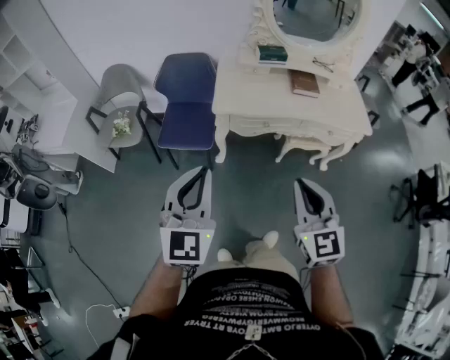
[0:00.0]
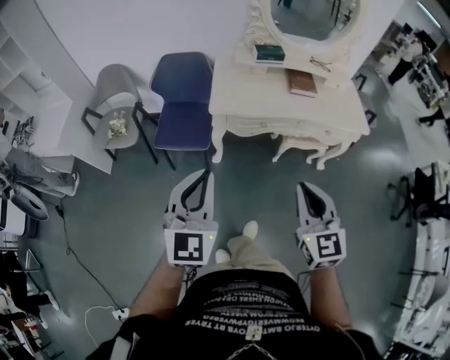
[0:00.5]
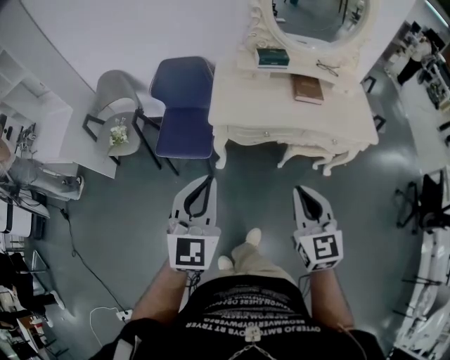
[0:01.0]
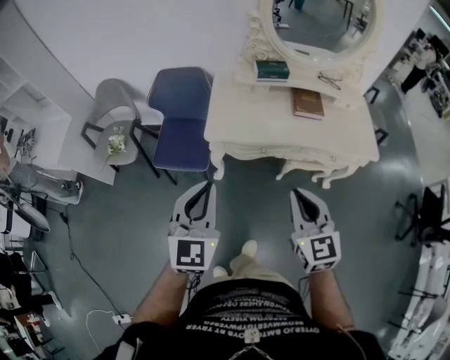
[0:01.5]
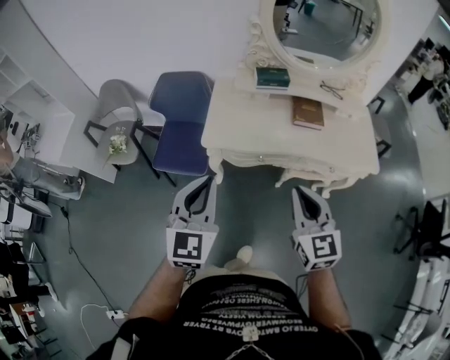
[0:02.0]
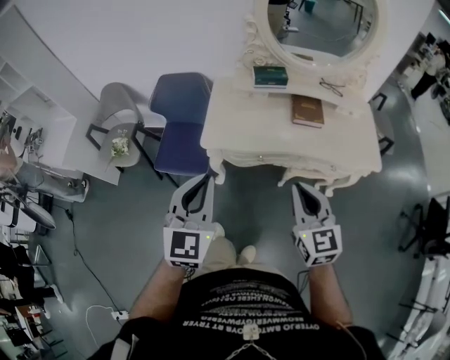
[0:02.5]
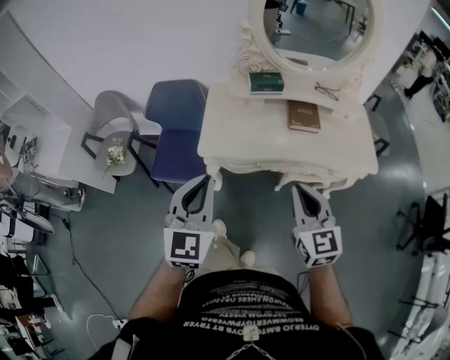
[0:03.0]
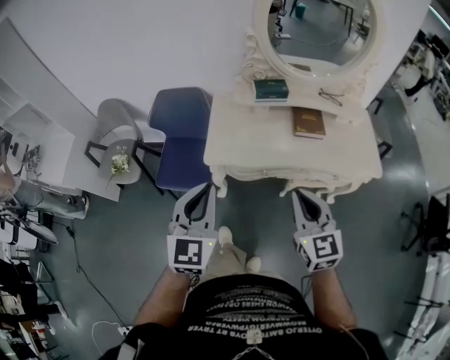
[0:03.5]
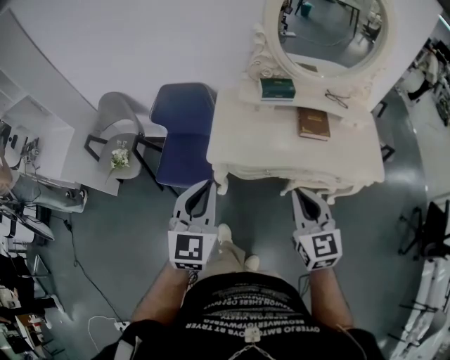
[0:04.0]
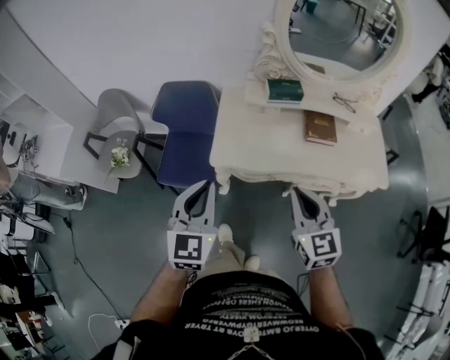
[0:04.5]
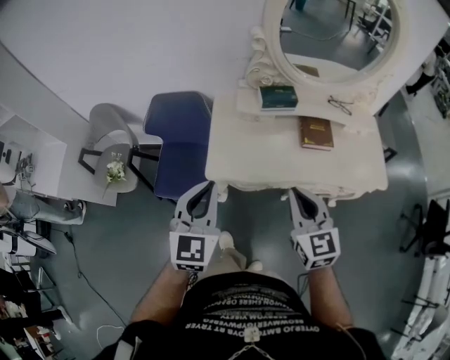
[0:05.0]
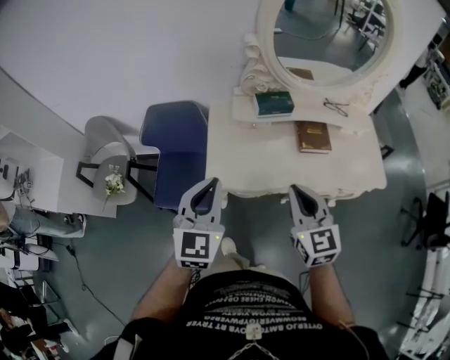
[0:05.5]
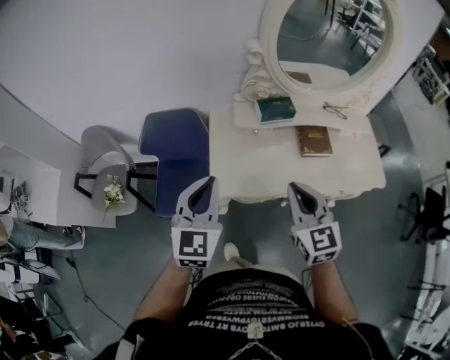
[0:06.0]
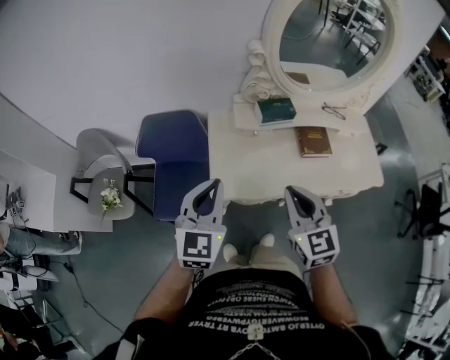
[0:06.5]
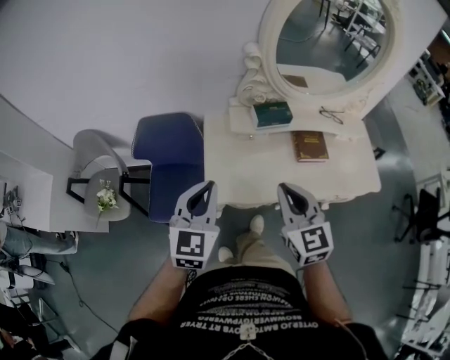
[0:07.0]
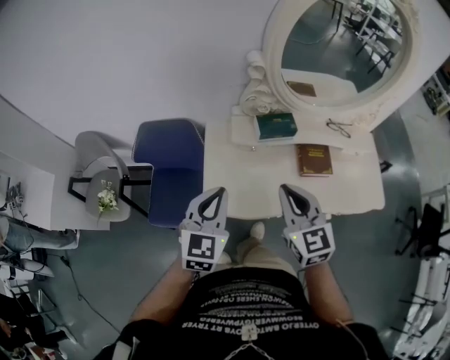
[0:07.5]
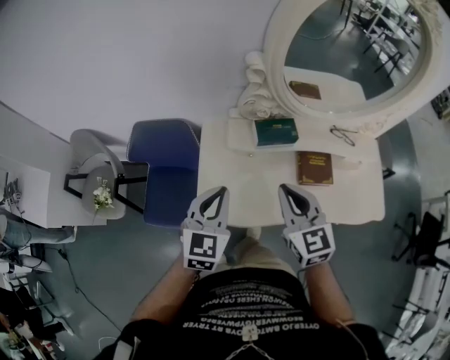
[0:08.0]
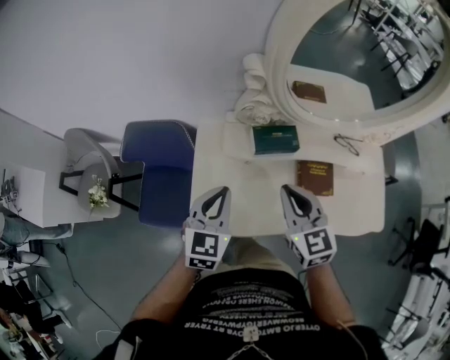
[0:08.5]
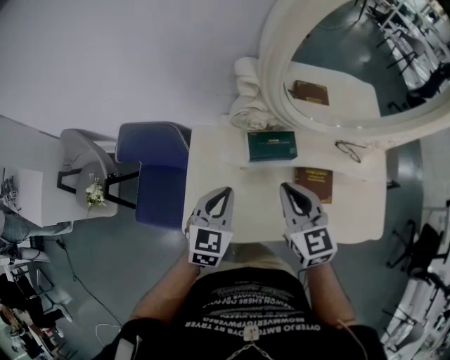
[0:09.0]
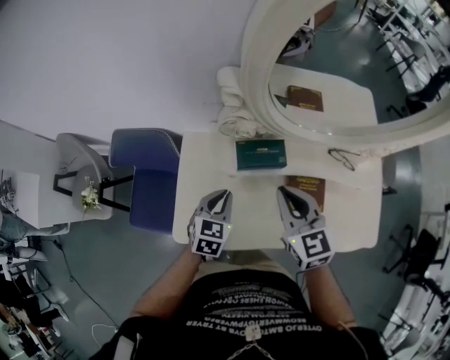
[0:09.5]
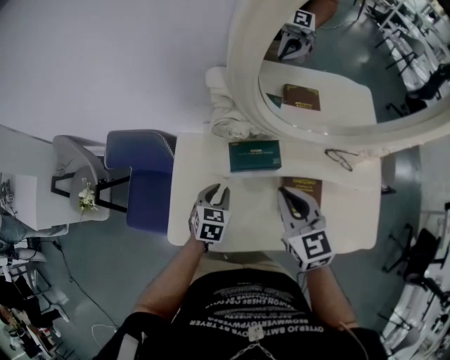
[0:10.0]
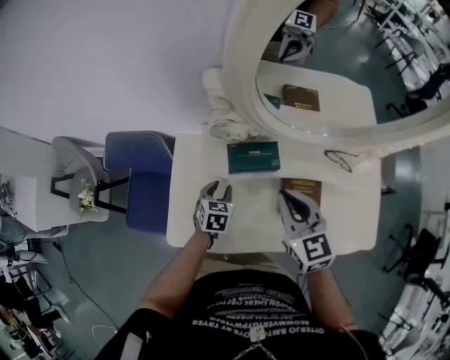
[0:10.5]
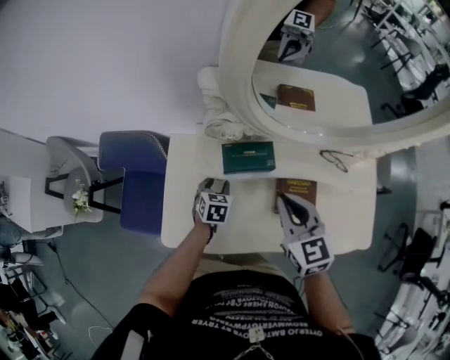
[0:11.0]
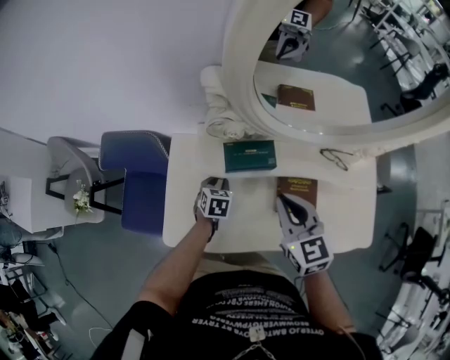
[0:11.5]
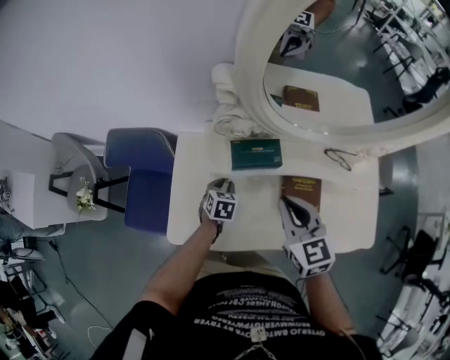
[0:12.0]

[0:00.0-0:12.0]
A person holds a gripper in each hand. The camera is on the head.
0:00.0 to 0:02.0: The grippers both shift forward and to the right by roughly 20 cm.
0:02.0 to 0:04.0: Both grippers move forward, about 5 cm.
0:04.0 to 0:06.0: The two grippers go about 15 cm forward.
0:06.0 to 0:08.0: The right gripper moves forward, roughly 15 cm; the left gripper goes about 15 cm forward, to the right and downward.
0:08.0 to 0:10.0: The right gripper heads forward and to the right, covering some 15 cm. Meanwhile the left gripper shifts roughly 25 cm downward, forward and to the right, and changes its angle by some 30 degrees.
0:10.0 to 0:12.0: The left gripper is displaced downward by roughly 10 cm.

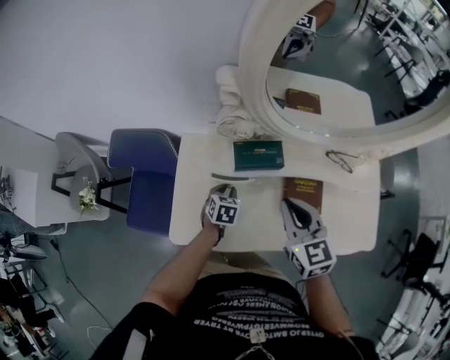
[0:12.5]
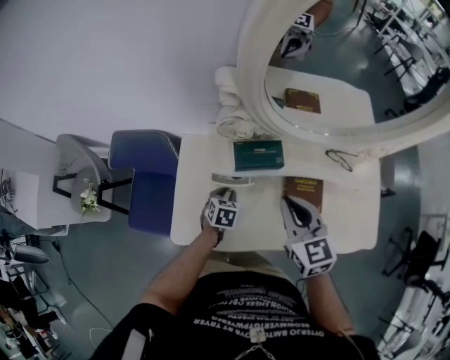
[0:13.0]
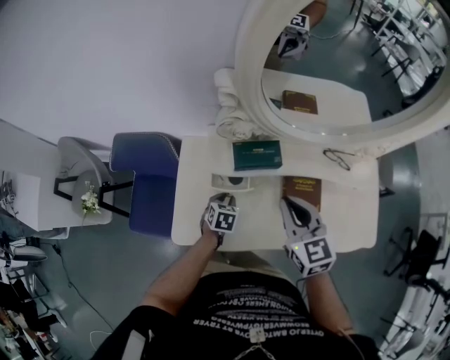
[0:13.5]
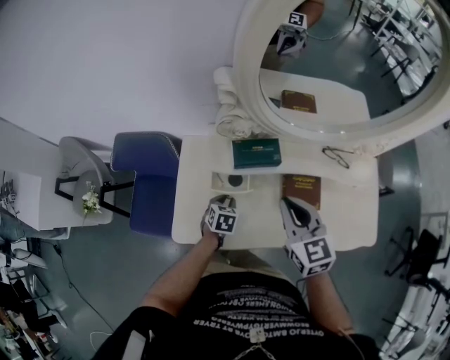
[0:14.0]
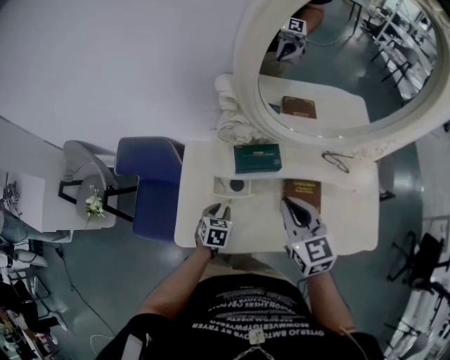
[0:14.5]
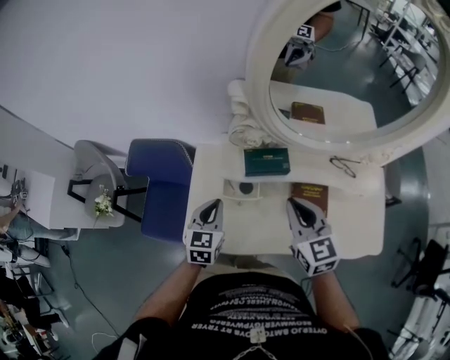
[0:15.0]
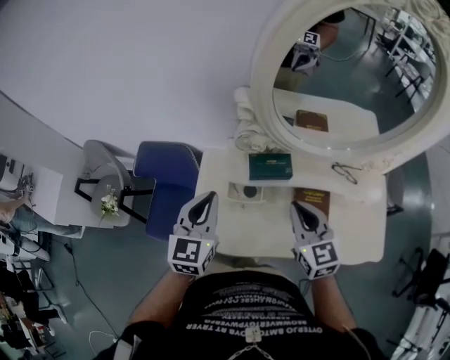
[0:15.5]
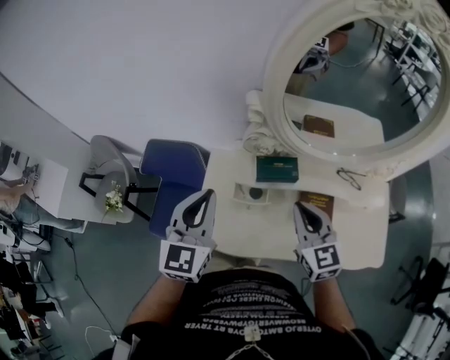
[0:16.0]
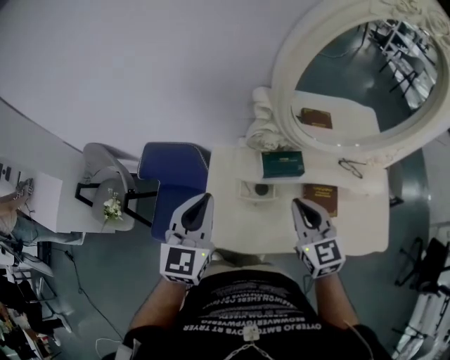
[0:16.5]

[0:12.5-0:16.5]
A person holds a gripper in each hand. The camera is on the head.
0:12.5 to 0:14.5: The left gripper moves backward, approximately 5 cm.
0:14.5 to 0:16.5: The left gripper shifts roughly 35 cm upward, tilts its fingers some 40 degrees upward, and closes. Meanwhile the right gripper moves to the left, about 5 cm.

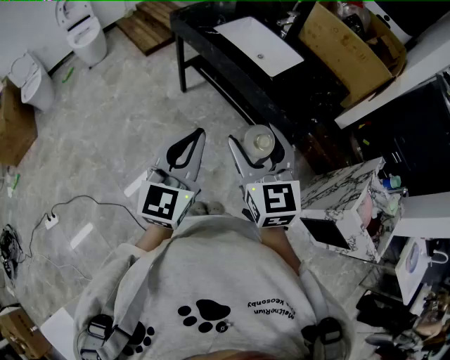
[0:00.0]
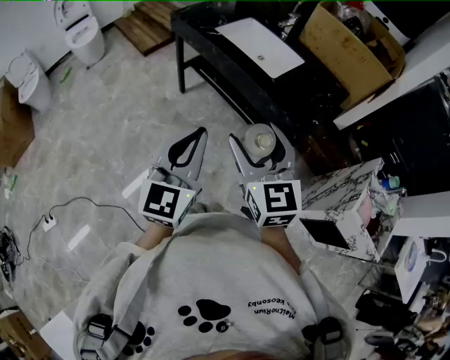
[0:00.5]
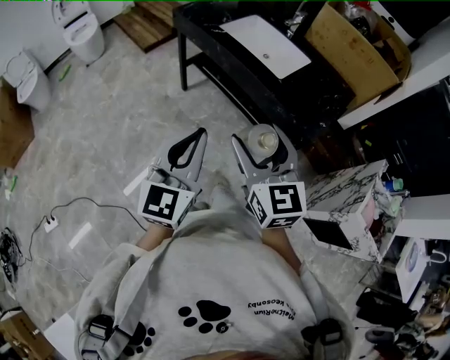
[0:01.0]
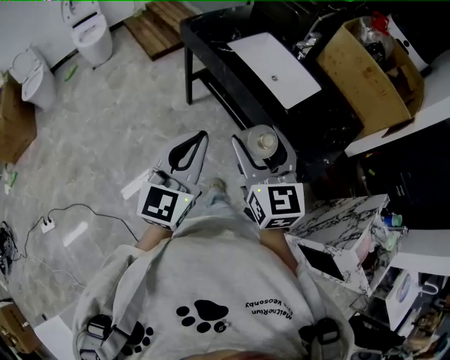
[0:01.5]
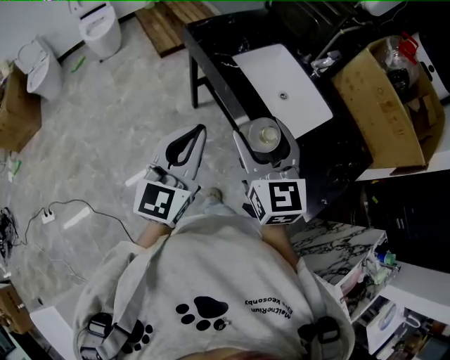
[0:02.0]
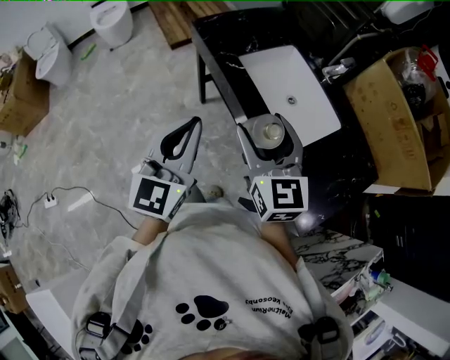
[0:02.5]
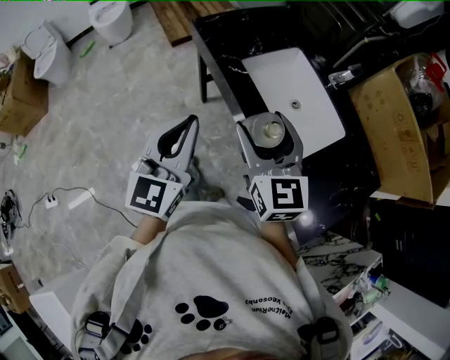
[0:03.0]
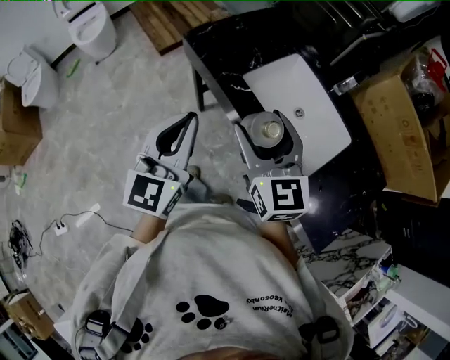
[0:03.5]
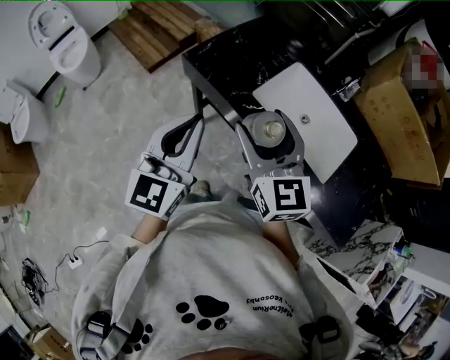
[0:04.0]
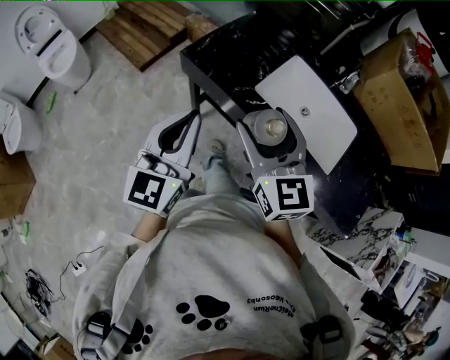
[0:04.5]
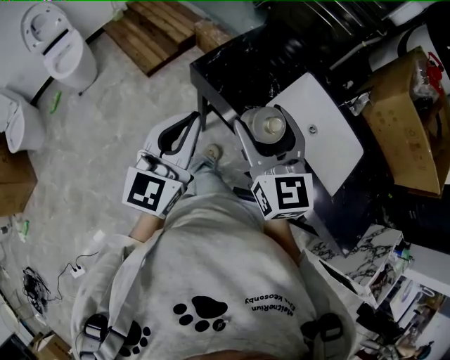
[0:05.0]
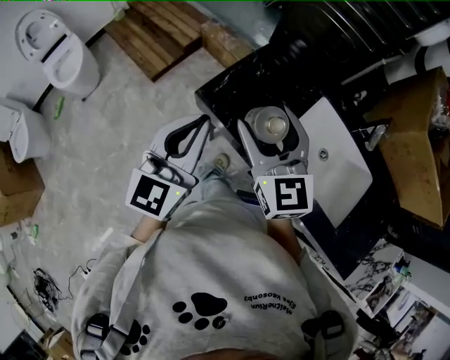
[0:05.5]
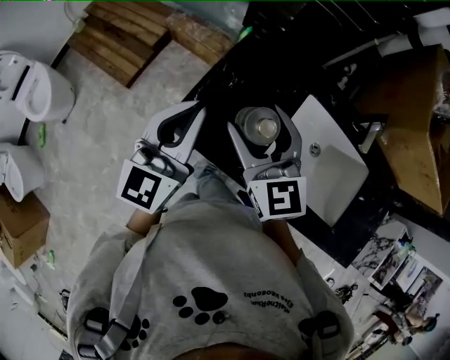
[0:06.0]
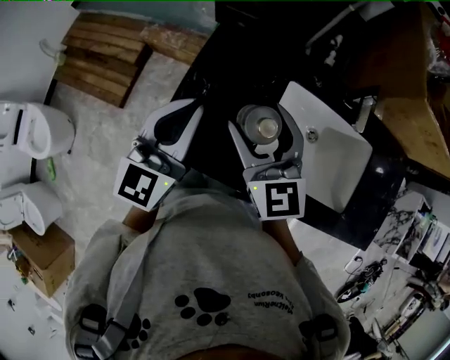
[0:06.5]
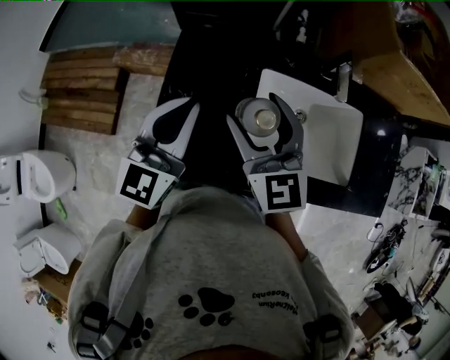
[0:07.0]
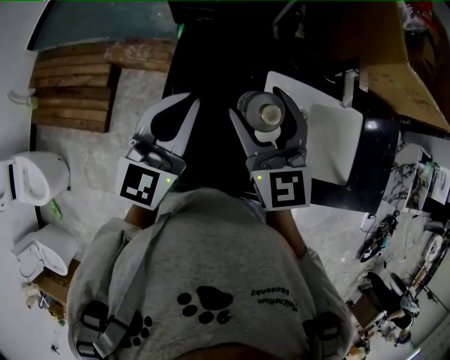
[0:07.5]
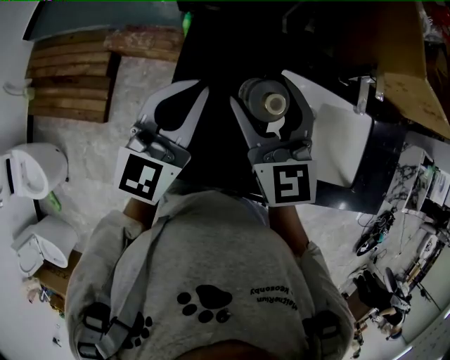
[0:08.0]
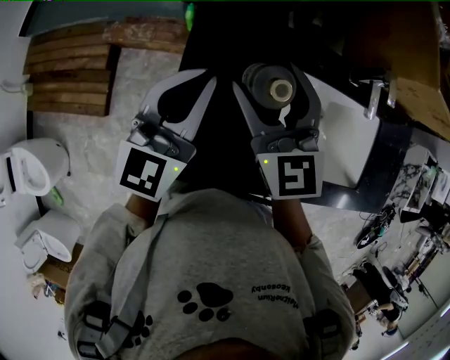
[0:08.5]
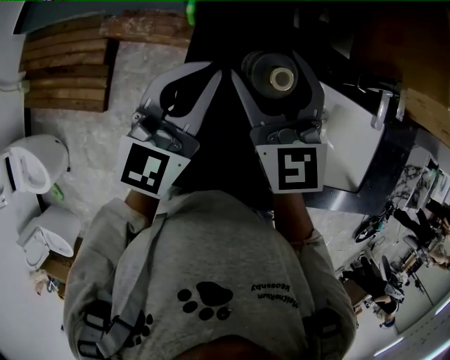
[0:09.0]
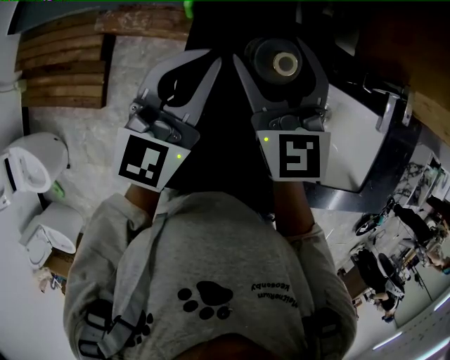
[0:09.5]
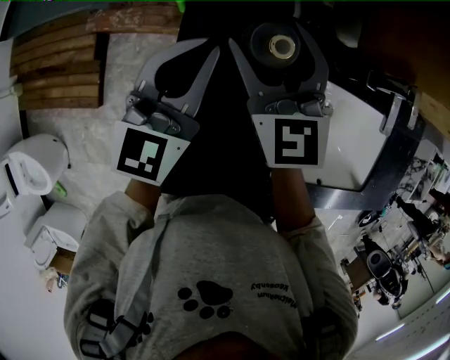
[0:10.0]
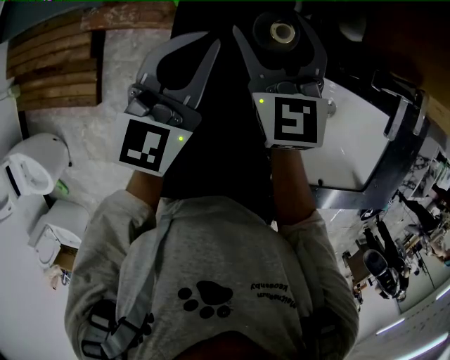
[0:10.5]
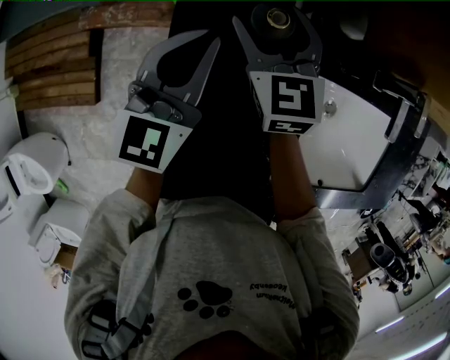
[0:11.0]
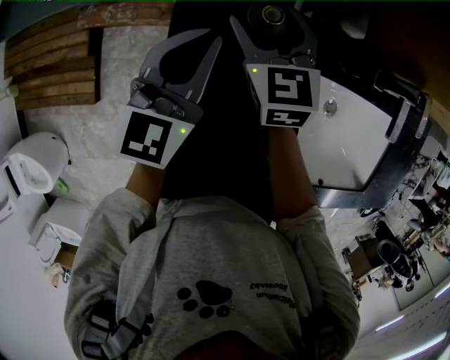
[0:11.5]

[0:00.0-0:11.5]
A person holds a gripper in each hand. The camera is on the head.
0:00.0 to 0:02.0: The grippers both shift forward by some 30 cm.
0:02.0 to 0:04.0: The two grippers go about 25 cm forward and to the left.
0:04.0 to 0:06.0: The grippers both shift forward by some 30 cm.
0:06.0 to 0:07.5: Both grippers move forward and to the right, some 10 cm. The left gripper turns by some 20 degrees; the right gripper rotates about 30 degrees.
0:07.5 to 0:09.5: The left gripper moves forward and downward, roughly 15 cm. The right gripper heads forward, to the left and downward, covering some 15 cm.
0:09.5 to 0:11.5: The left gripper goes approximately 10 cm downward and forward; the right gripper moves downward and forward, some 15 cm.
